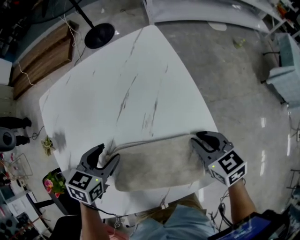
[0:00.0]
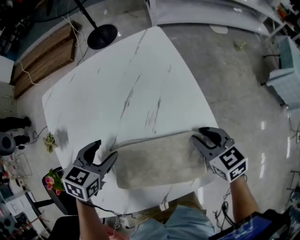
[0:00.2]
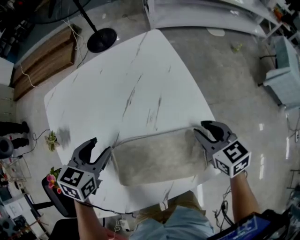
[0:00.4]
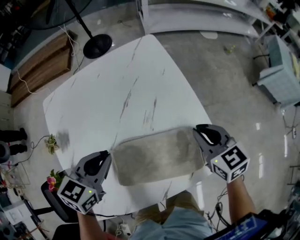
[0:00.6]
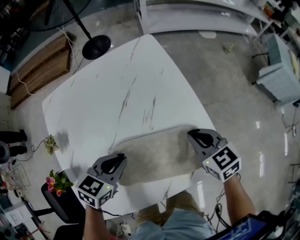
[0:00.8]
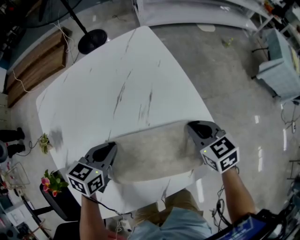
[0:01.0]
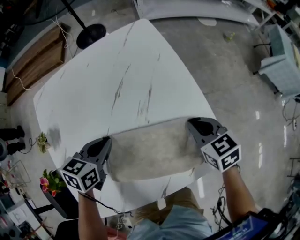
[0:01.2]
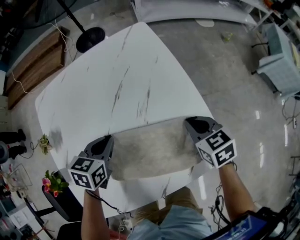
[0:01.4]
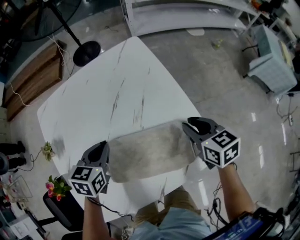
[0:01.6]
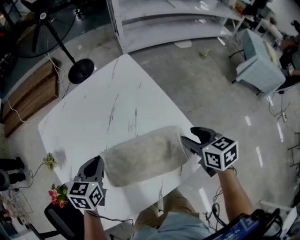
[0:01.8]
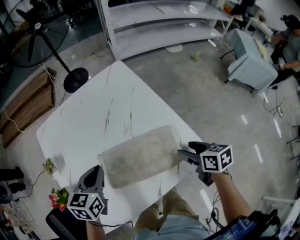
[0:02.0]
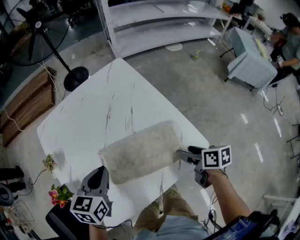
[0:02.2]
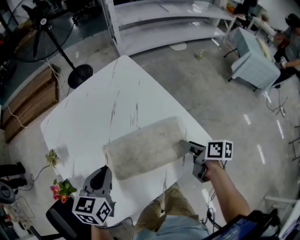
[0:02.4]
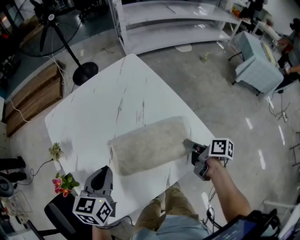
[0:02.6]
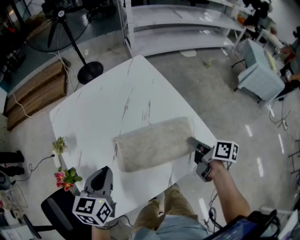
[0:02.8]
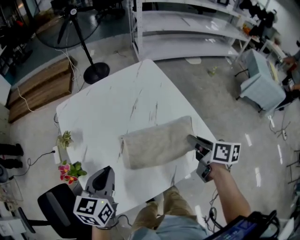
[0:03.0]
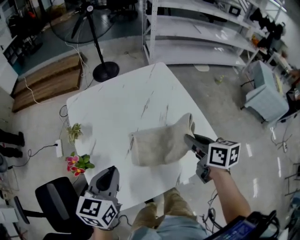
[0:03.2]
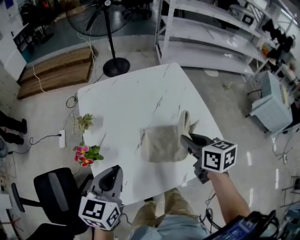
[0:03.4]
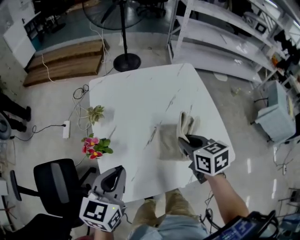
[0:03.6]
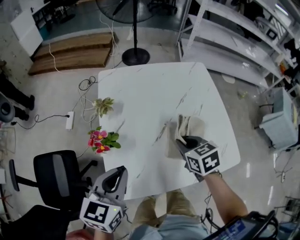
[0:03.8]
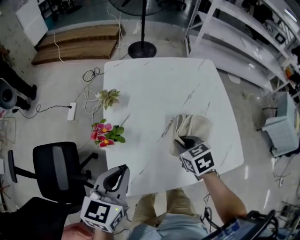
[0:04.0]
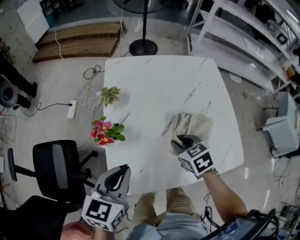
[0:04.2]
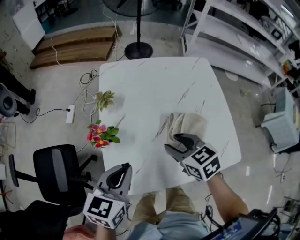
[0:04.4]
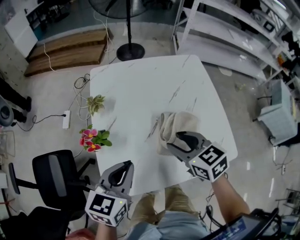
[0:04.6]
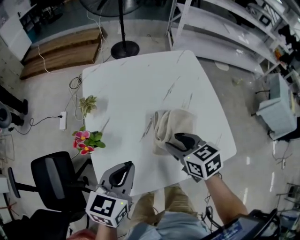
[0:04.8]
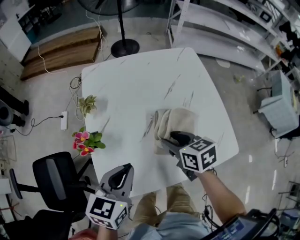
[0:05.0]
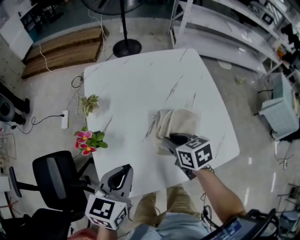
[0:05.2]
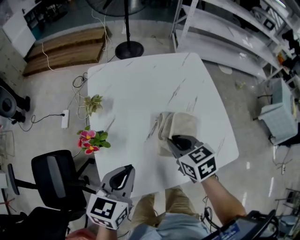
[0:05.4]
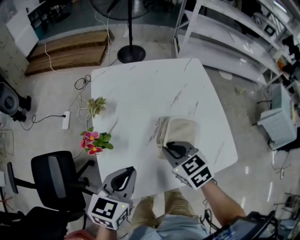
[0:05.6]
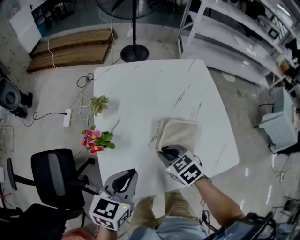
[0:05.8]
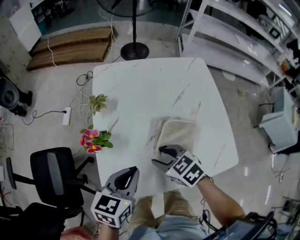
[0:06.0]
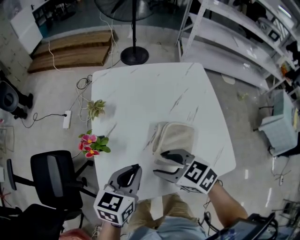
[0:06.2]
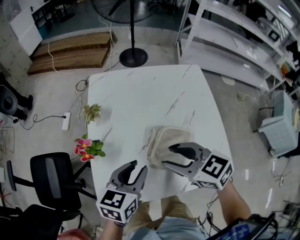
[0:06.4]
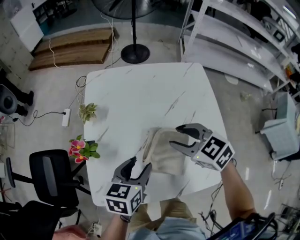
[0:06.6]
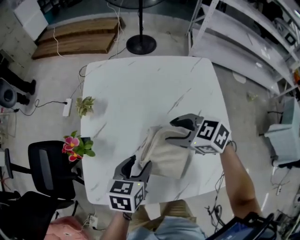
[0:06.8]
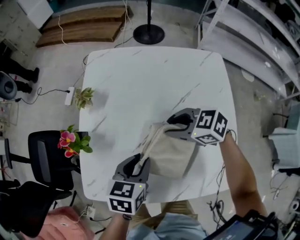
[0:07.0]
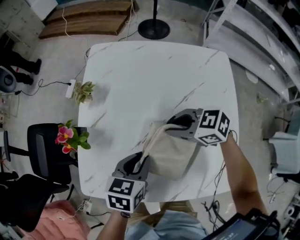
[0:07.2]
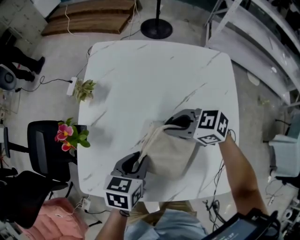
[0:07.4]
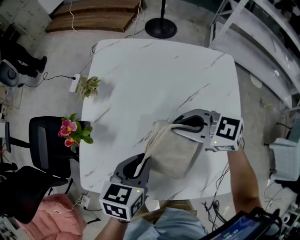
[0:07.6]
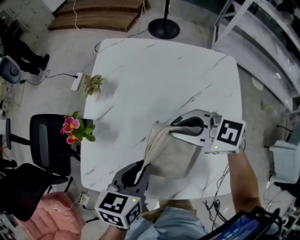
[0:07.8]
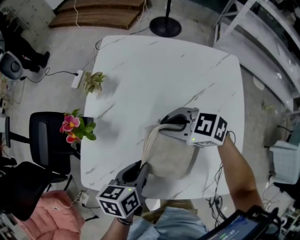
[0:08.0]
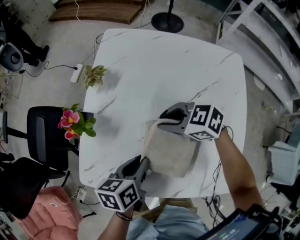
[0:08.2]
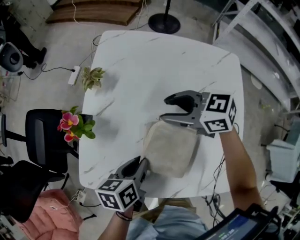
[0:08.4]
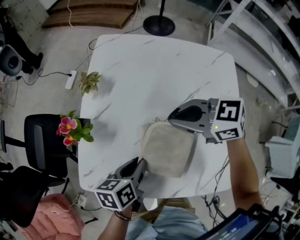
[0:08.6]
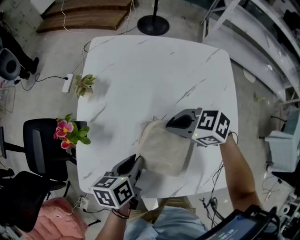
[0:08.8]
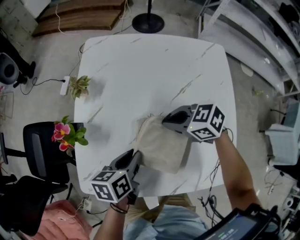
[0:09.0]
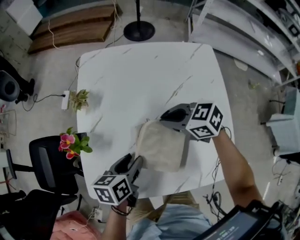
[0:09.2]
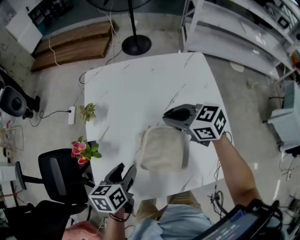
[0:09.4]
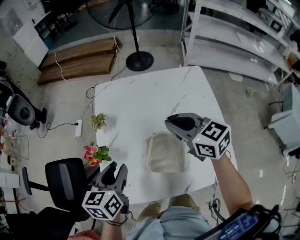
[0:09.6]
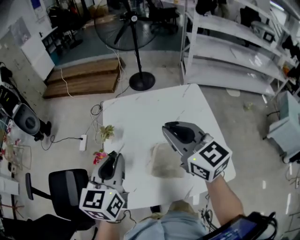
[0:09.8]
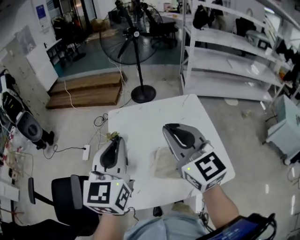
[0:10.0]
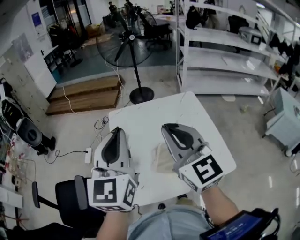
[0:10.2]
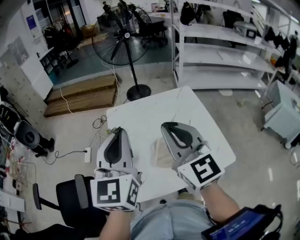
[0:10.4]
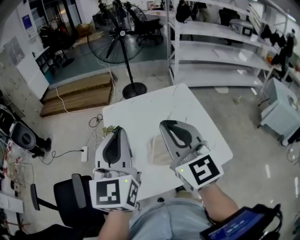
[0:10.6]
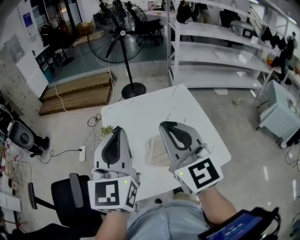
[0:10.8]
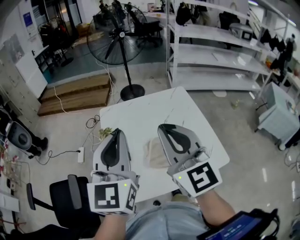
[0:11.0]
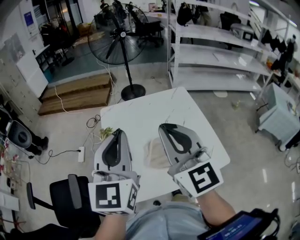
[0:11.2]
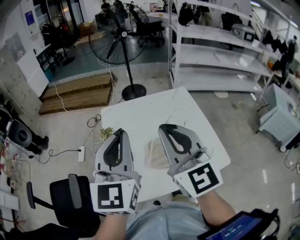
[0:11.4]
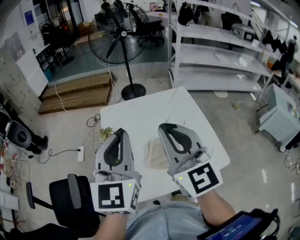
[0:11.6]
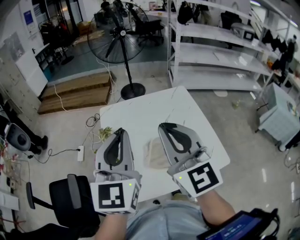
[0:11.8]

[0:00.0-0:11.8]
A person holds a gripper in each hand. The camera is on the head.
0:00.0 to 0:01.4: The right gripper goes upward and returns, approximately 5 cm each way, while the left gripper goes upward and returns, some 10 cm each way, and closes.
0:01.4 to 0:03.0: The left gripper heads backward, upward and to the left, covering some 20 cm. The right gripper moves upward and backward, about 15 cm, rotates around the line of its fingers by roughly 40 degrees, clockwise from behind, and opens and closes again.
0:03.0 to 0:04.4: The right gripper heads to the left, covering approximately 25 cm, rolls counterclockwise, seen from behind, by roughly 60 degrees, and opens up, while the left gripper heads to the left and backward, covering roughly 10 cm.
0:04.4 to 0:06.0: The left gripper shifts by approximately 5 cm. Meanwhile the right gripper goes up and down, about 10 cm each way, reversing 2 times, and closes, then reopens.
0:06.0 to 0:07.4: The right gripper travels upward and back again, roughly 10 cm each way, changes its angle by approximately 40 degrees, and closes up. The left gripper shifts by about 15 cm, swivels about 20 degrees, and opens, then closes again.
0:07.4 to 0:08.8: The right gripper swings up and down, some 10 cm each way, with 3 reversals, and opens and closes again, while the left gripper travels upward and back again, about 5 cm each way, and turns by about 20 degrees.
0:08.8 to 0:10.4: The grippers both shift upward by about 40 cm. The left gripper tips its fingers upward by some 50 degrees, and opens, then closes again; the right gripper tips its fingers upward by some 50 degrees.
0:10.4 to 0:11.8: The grippers make only small movements.

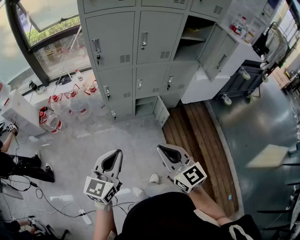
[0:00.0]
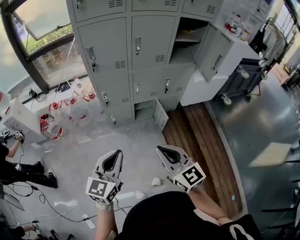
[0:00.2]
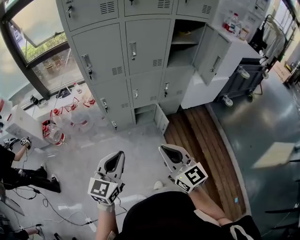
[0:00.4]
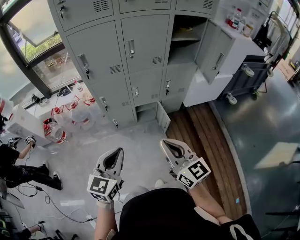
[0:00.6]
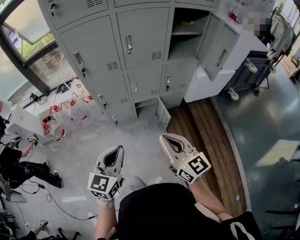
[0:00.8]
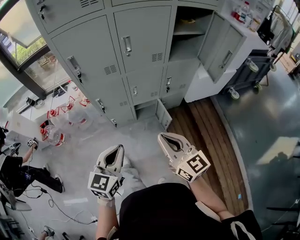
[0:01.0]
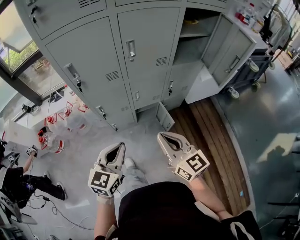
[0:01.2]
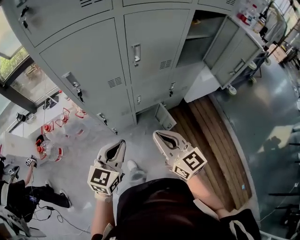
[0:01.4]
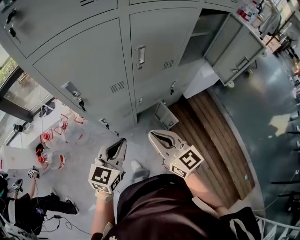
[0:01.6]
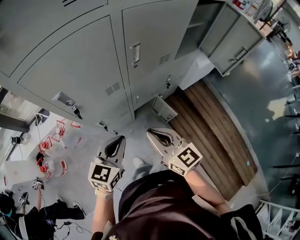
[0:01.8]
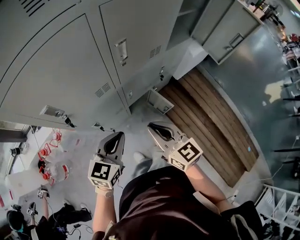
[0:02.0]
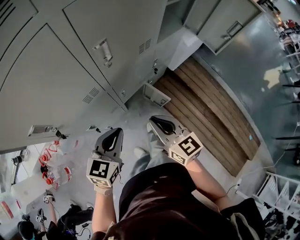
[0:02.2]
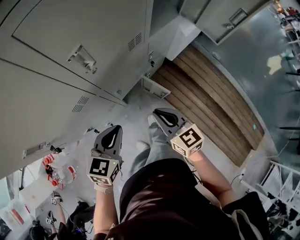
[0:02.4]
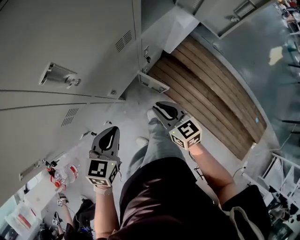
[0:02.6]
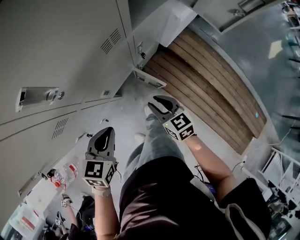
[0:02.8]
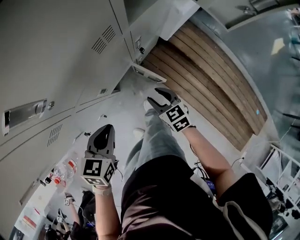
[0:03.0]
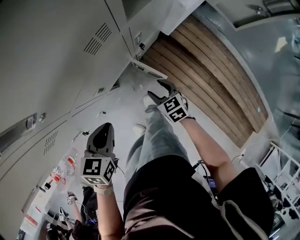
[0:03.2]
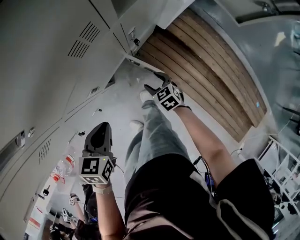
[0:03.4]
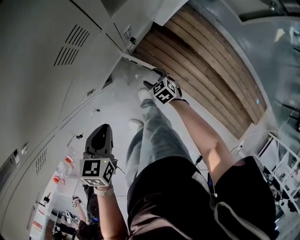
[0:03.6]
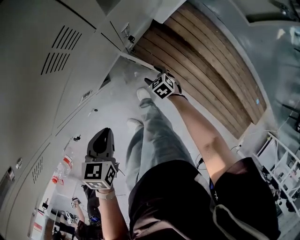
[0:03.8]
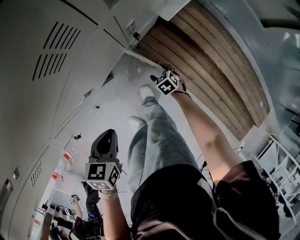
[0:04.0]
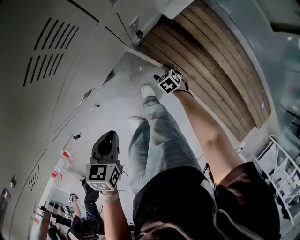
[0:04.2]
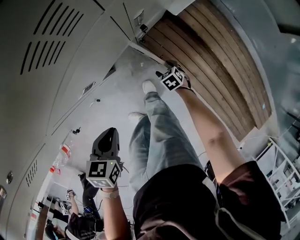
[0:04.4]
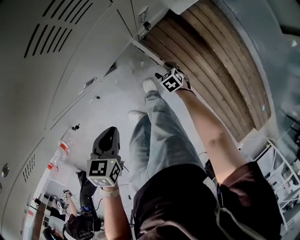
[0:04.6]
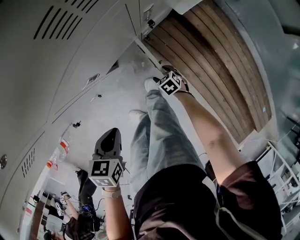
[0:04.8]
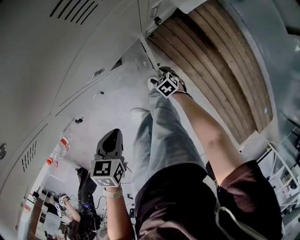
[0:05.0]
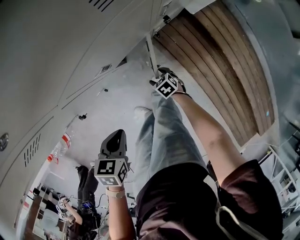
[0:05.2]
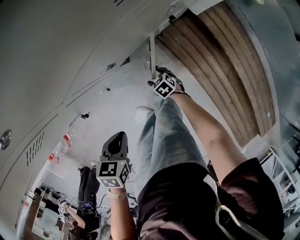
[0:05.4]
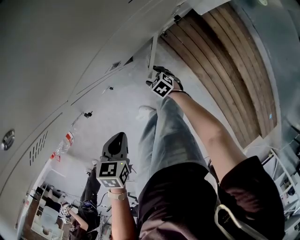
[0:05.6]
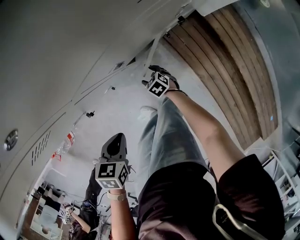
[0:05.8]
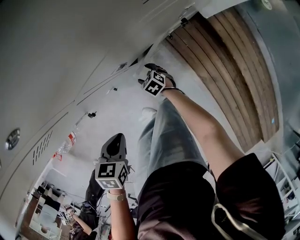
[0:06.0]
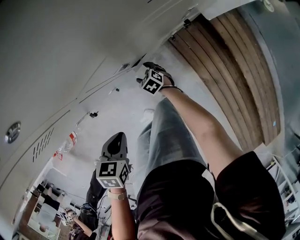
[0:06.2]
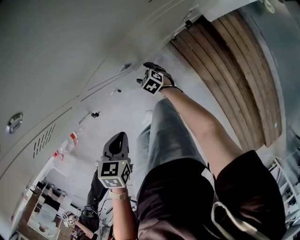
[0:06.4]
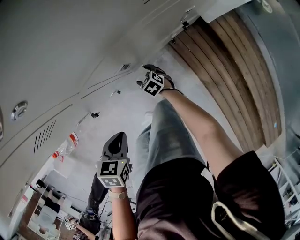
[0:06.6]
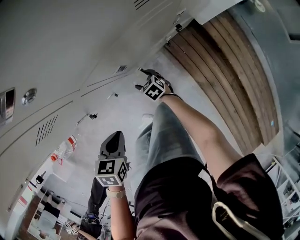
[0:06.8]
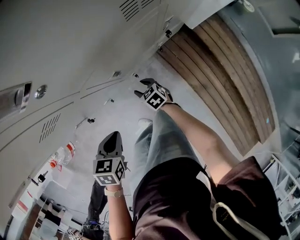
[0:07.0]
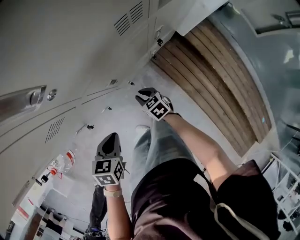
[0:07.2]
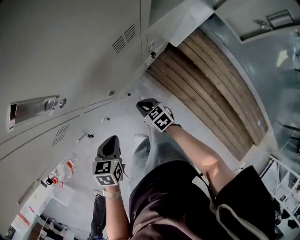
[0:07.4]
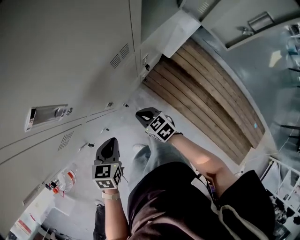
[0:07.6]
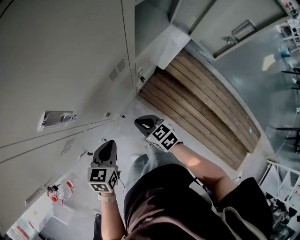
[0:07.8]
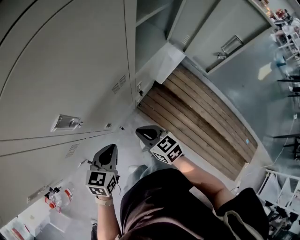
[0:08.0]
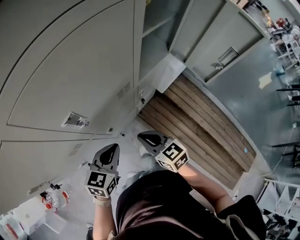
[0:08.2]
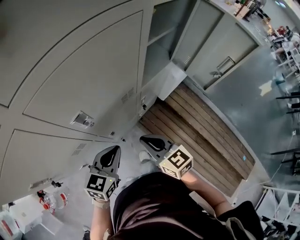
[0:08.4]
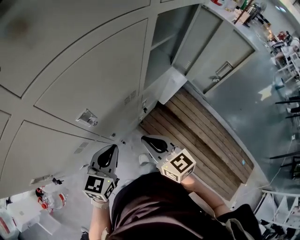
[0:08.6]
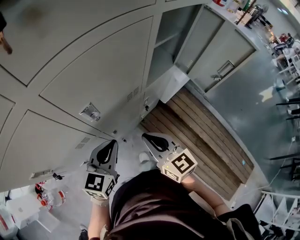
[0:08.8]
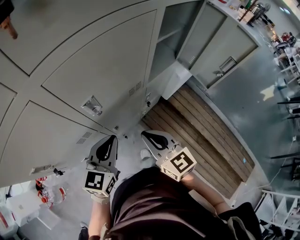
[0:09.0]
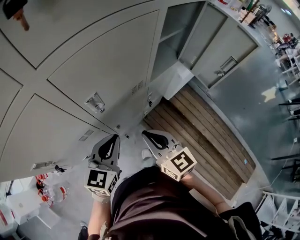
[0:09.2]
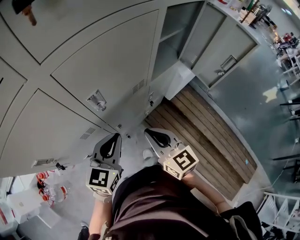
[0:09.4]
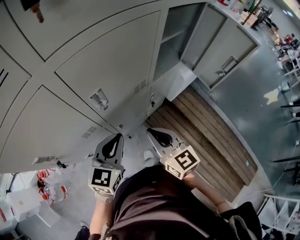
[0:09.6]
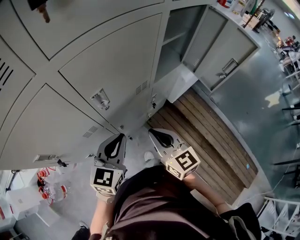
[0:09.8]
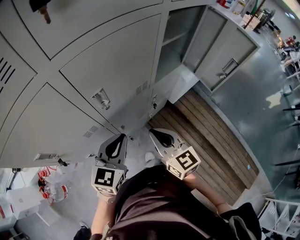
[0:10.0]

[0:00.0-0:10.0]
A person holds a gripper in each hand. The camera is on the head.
0:00.0 to 0:01.4: The grippers both shift forward by about 30 cm.
0:01.4 to 0:02.8: The right gripper shifts some 35 cm downward and forward, and turns by some 40 degrees. The left gripper travels forward and downward by some 30 cm, and swivels roughly 30 degrees.
0:02.8 to 0:04.2: The right gripper travels downward by roughly 35 cm, points its fingers approximately 40 degrees further downward, and opens its fingers. Meanwhile the left gripper heads downward, covering roughly 15 cm, and changes its angle by approximately 20 degrees.
0:04.2 to 0:05.8: The left gripper heads to the left and backward, covering about 15 cm; the right gripper heads to the left, covering roughly 25 cm, and turns by approximately 20 degrees.
0:05.8 to 0:07.2: The left gripper moves approximately 5 cm; the right gripper travels upward by about 15 cm, and closes its fingers.
0:07.2 to 0:08.6: The right gripper is displaced upward by about 40 cm, and tilts its fingers some 30 degrees upward, while the left gripper goes some 25 cm upward, and tips its fingers upward by some 40 degrees.
0:08.6 to 0:10.0: There are only small adjustments of the grippers.

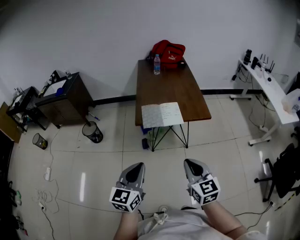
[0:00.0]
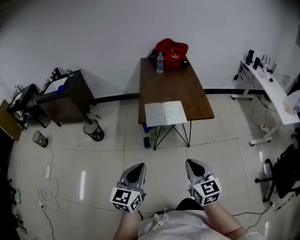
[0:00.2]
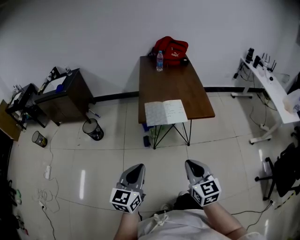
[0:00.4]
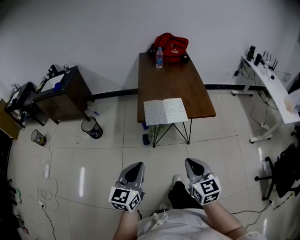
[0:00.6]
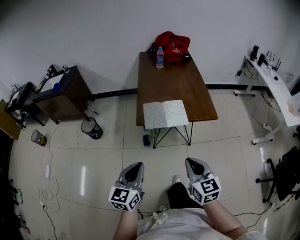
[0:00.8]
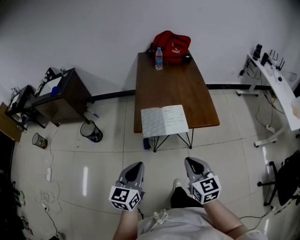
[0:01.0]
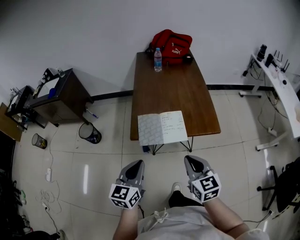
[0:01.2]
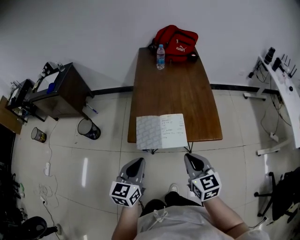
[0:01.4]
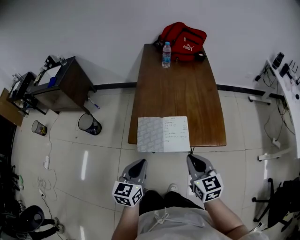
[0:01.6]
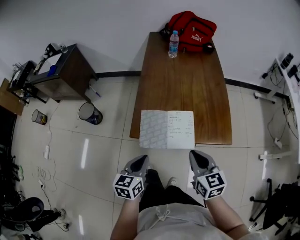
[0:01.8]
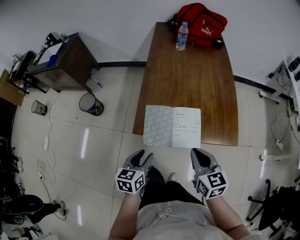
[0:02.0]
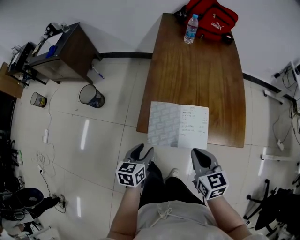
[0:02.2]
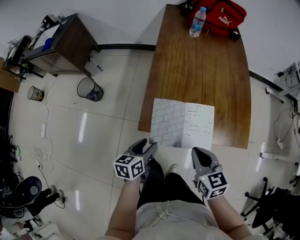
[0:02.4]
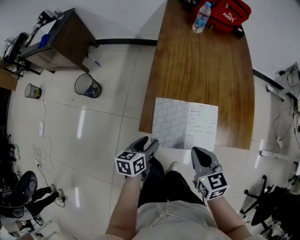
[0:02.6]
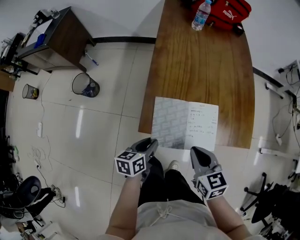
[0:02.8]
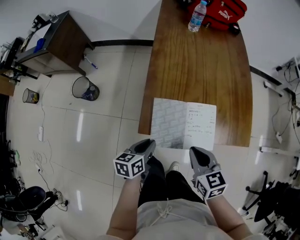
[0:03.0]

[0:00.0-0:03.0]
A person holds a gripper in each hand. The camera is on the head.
0:00.0 to 0:01.6: Both grippers travel together forward, about 30 cm.
0:01.6 to 0:03.0: The left gripper goes about 20 cm downward and forward, changes its angle by roughly 30 degrees, and opens, then closes again, while the right gripper heads downward, to the left and forward, covering roughly 15 cm.
